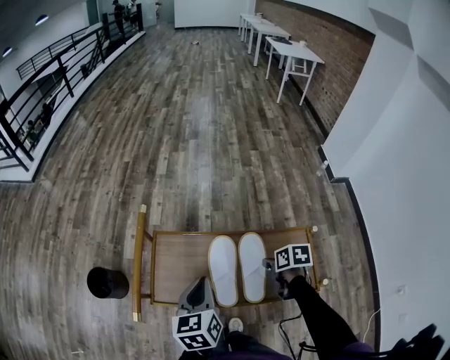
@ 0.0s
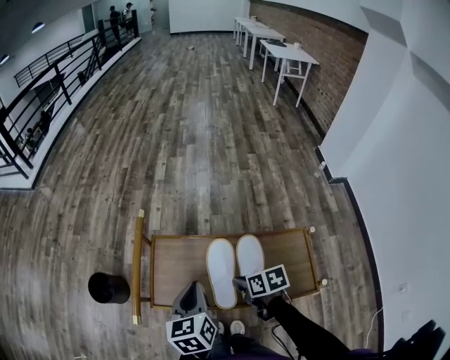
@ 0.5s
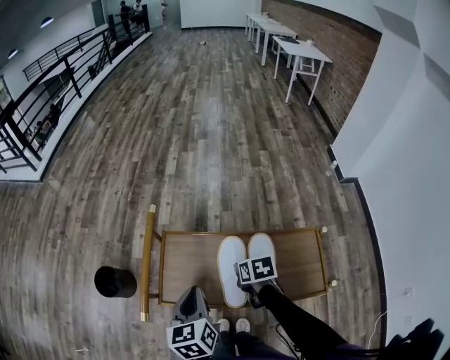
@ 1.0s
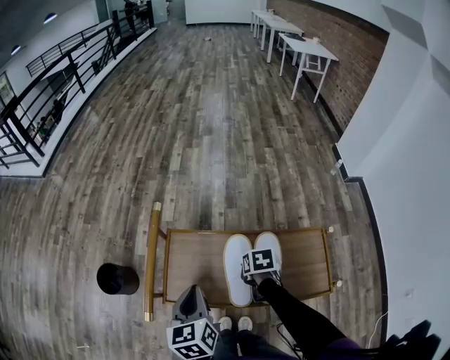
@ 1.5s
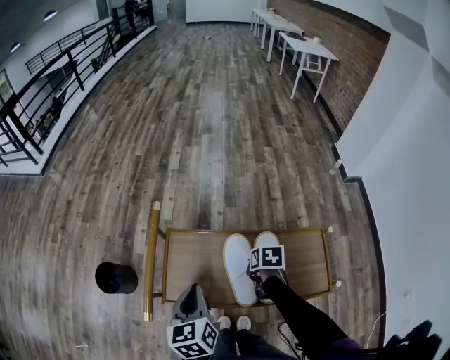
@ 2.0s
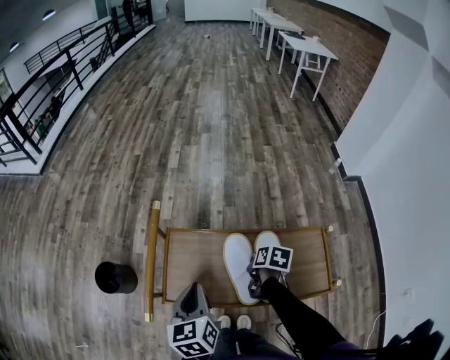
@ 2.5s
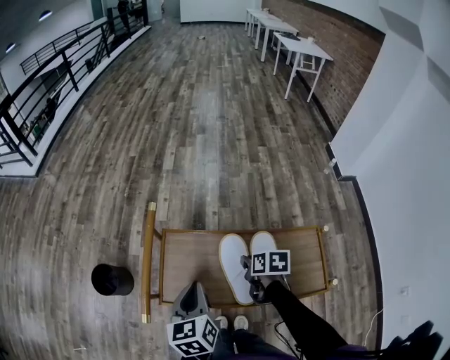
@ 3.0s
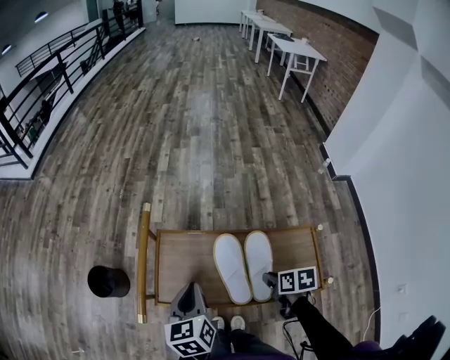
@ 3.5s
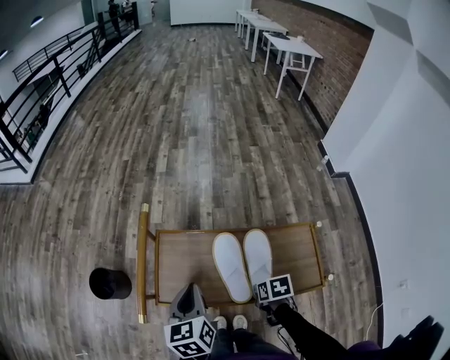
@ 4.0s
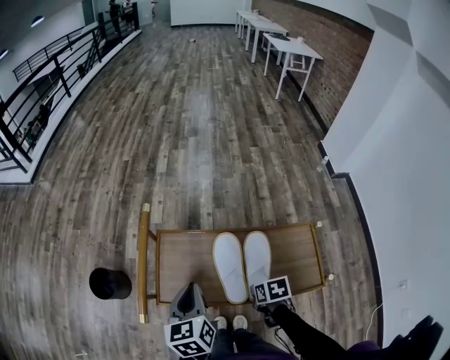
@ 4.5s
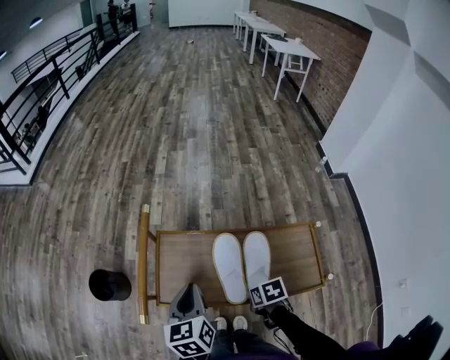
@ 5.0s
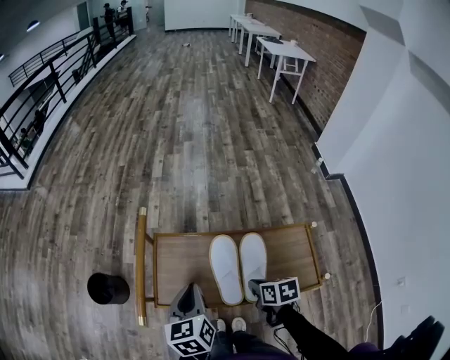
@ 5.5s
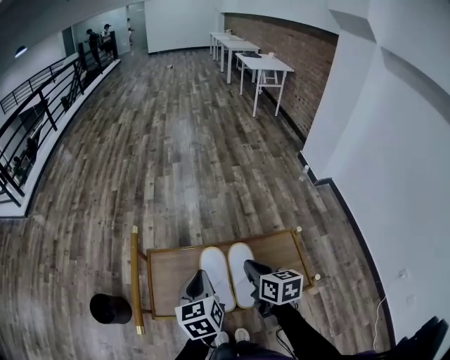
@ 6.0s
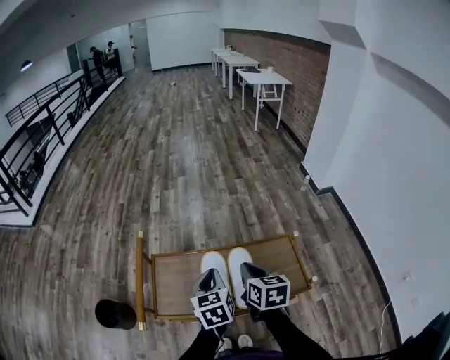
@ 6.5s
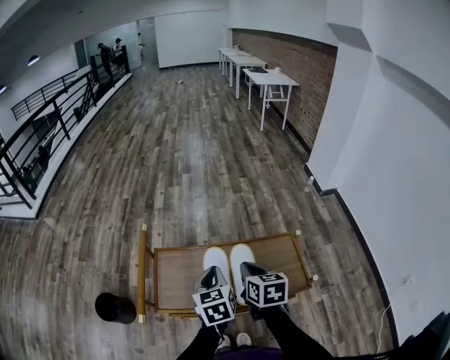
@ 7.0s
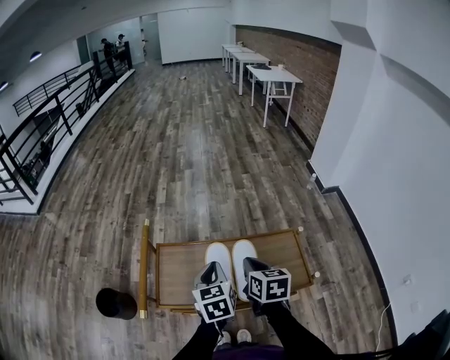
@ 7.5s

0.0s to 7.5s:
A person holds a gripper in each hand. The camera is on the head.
0.0s to 2.0s: The left gripper is displaced to the left by about 5 cm. The right gripper heads to the left and forward, covering roughly 10 cm.
2.0s to 4.0s: The right gripper heads backward, covering approximately 15 cm.
4.0s to 5.5s: The right gripper heads upward, covering roughly 5 cm.
5.5s to 7.5s: The left gripper goes about 10 cm to the right. The right gripper travels upward by about 15 cm, and changes its angle by about 30 degrees.

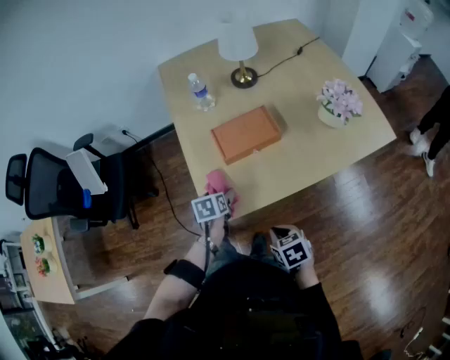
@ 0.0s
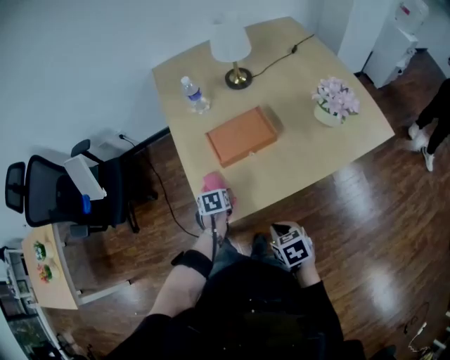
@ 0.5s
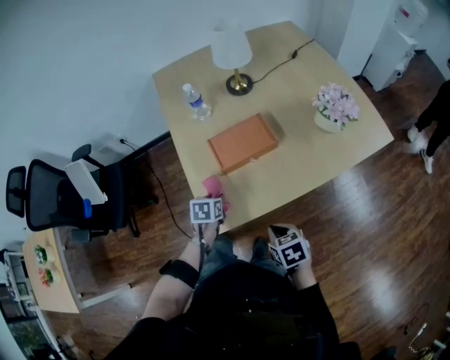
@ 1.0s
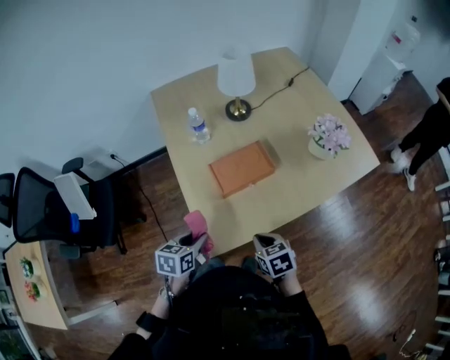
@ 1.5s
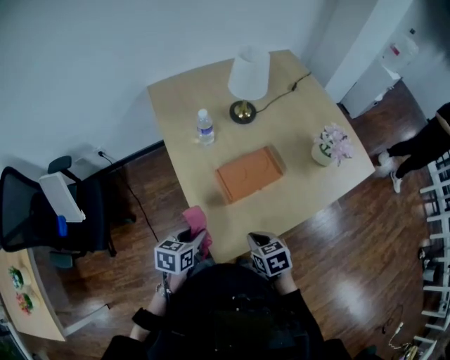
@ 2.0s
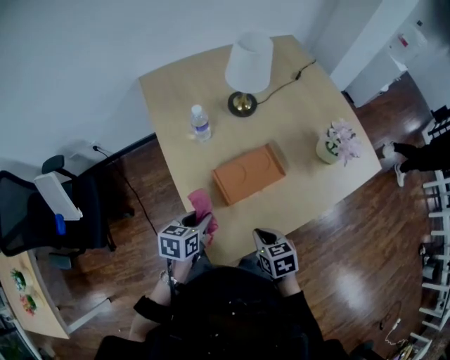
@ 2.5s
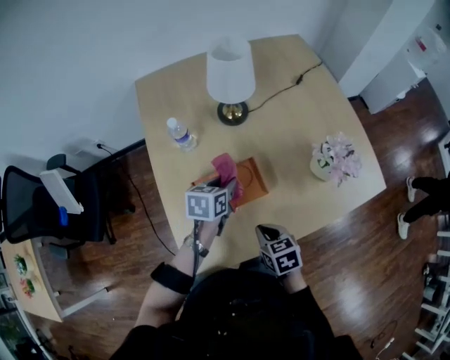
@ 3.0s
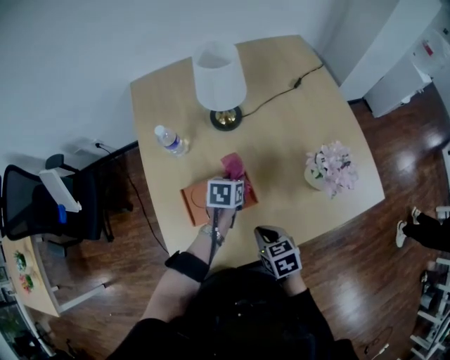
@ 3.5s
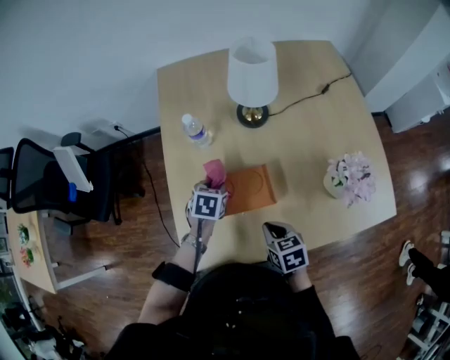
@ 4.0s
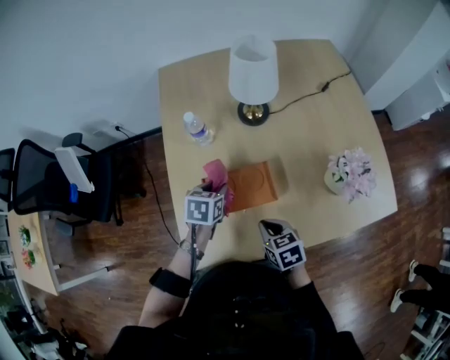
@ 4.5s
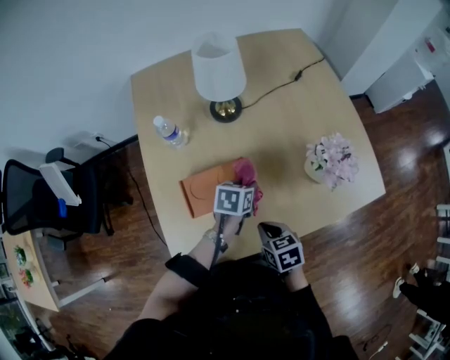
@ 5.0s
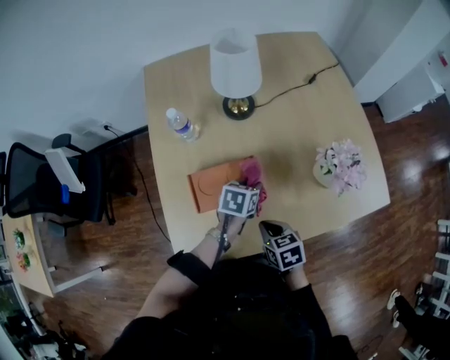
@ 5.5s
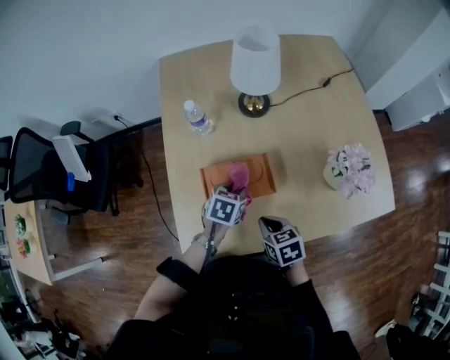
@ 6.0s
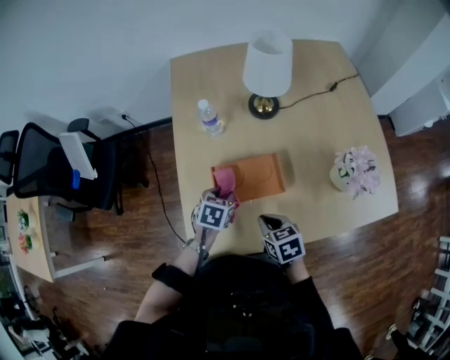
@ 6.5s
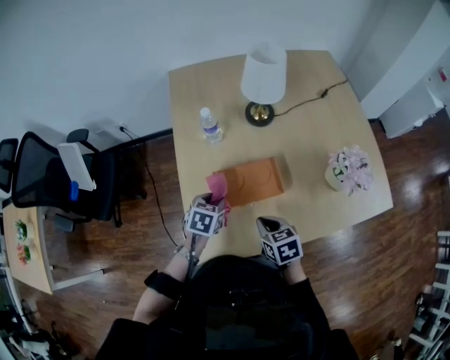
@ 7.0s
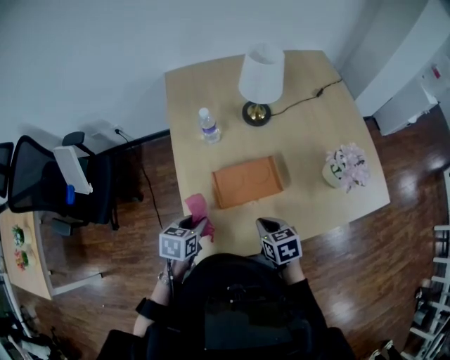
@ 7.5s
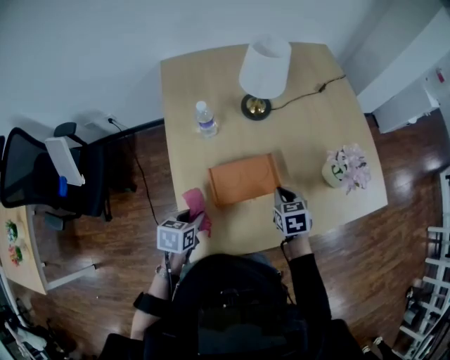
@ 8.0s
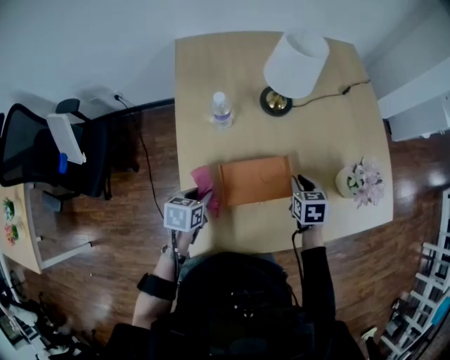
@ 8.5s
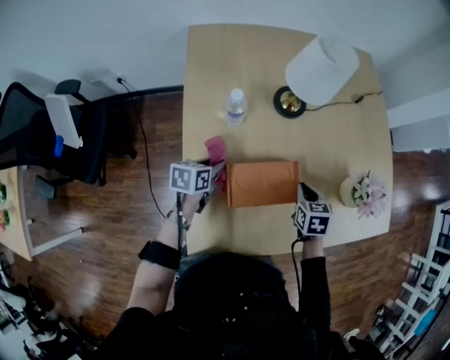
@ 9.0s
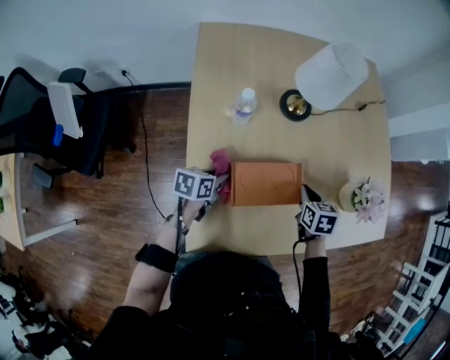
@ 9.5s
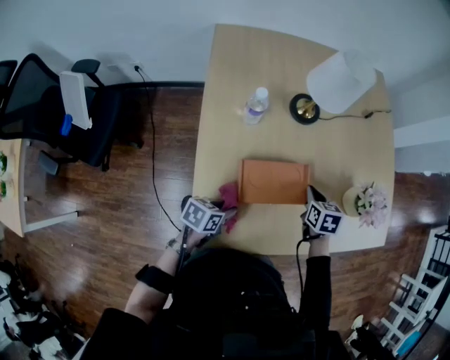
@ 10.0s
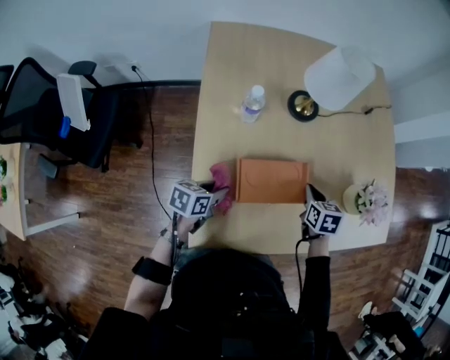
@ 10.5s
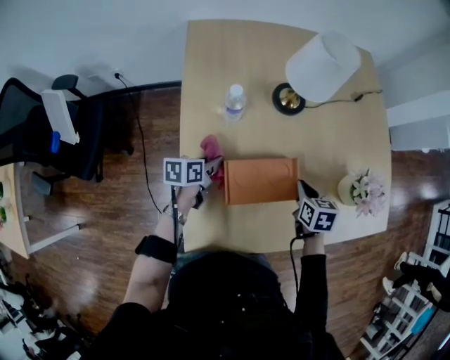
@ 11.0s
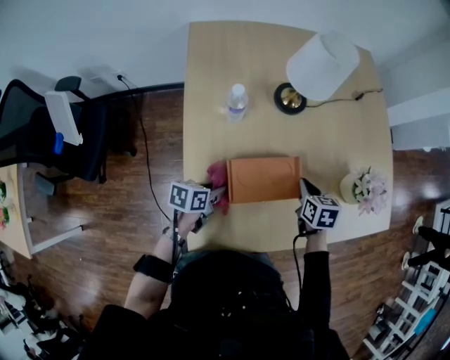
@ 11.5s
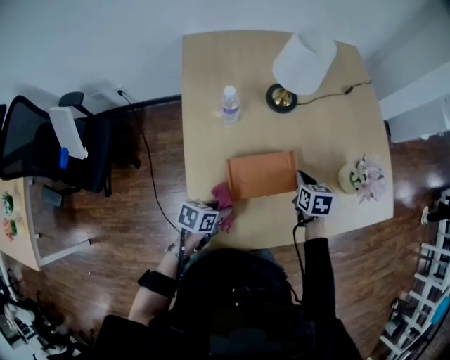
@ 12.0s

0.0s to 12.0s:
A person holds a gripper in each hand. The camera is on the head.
0.0s to 2.0s: The right gripper shifts by approximately 15 cm. Meanwhile the left gripper travels upward by approximately 10 cm, swivels some 30 degrees, and closes its fingers.
2.0s to 4.0s: The right gripper ends up roughly 20 cm from where it was. Meanwhile the left gripper shifts by approximately 25 cm, and changes its angle by some 30 degrees.
4.0s to 6.0s: The left gripper is displaced to the right and backward by about 10 cm.
6.0s to 8.0s: The right gripper is displaced forward by approximately 10 cm, and turns by approximately 20 degrees. The left gripper travels to the left and backward by approximately 20 cm.
8.0s to 10.0s: The right gripper shifts about 5 cm forward, while the left gripper shifts approximately 5 cm to the right, travels forward and back again, approximately 15 cm each way, and swivels about 20 degrees.
10.0s to 12.0s: The left gripper moves approximately 15 cm forward and comes back.

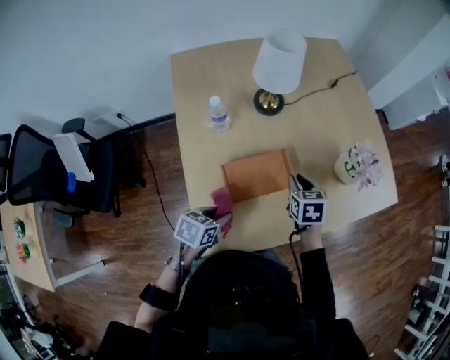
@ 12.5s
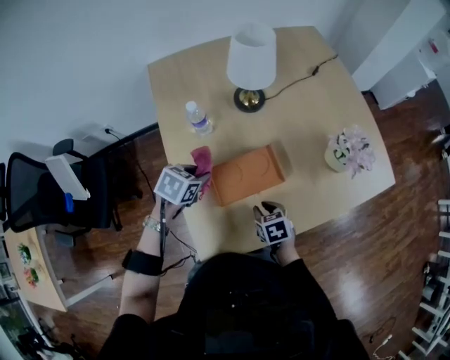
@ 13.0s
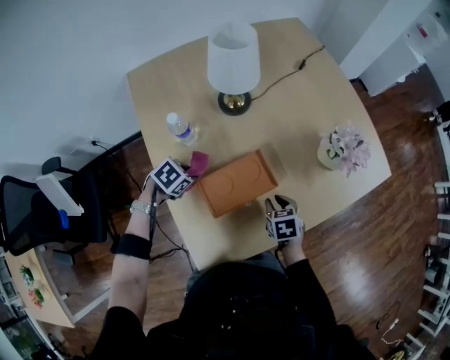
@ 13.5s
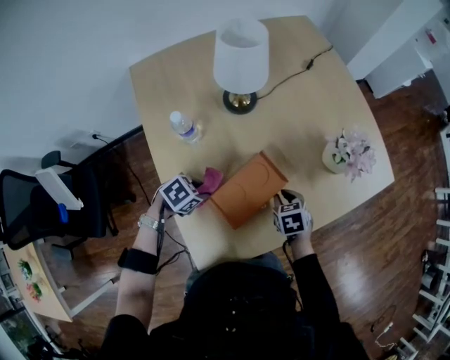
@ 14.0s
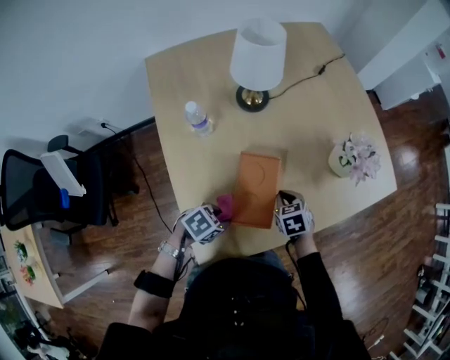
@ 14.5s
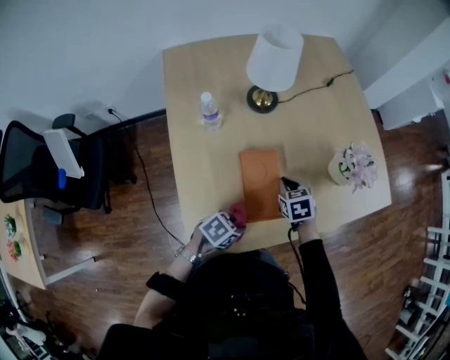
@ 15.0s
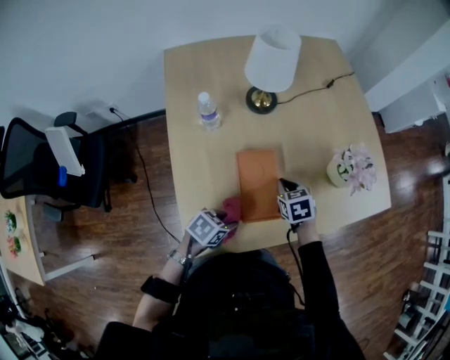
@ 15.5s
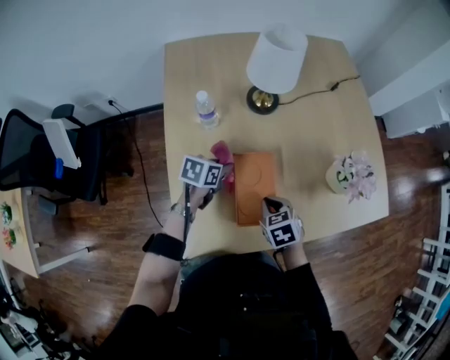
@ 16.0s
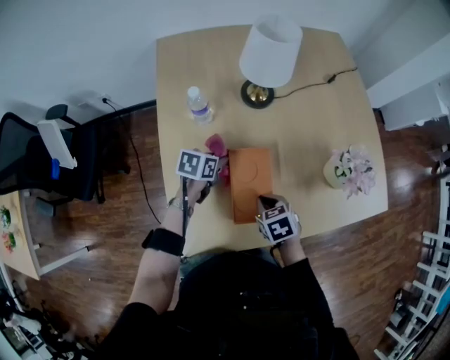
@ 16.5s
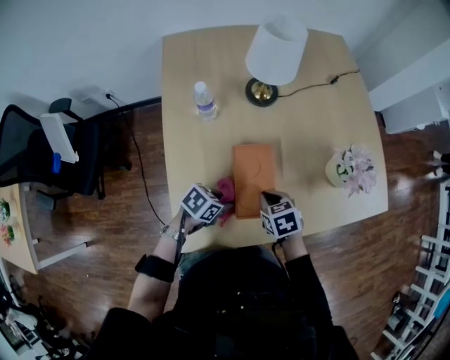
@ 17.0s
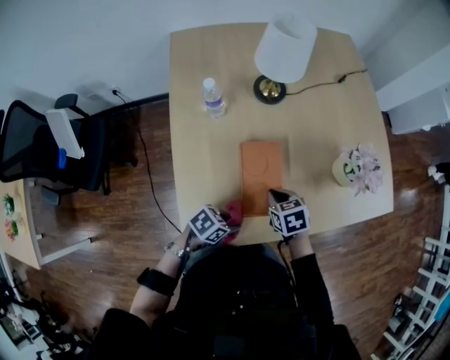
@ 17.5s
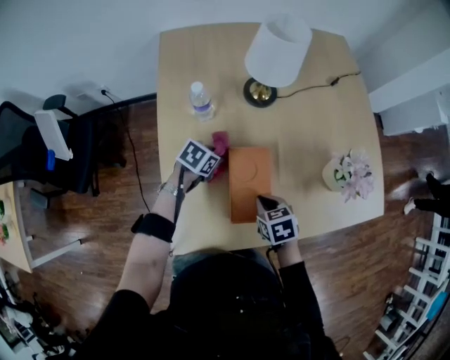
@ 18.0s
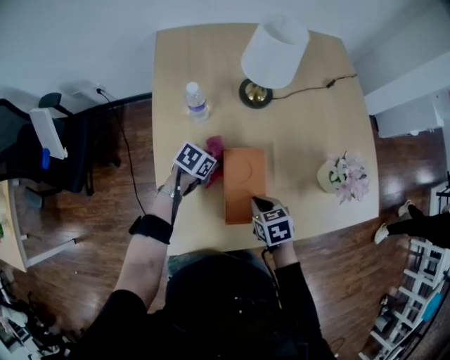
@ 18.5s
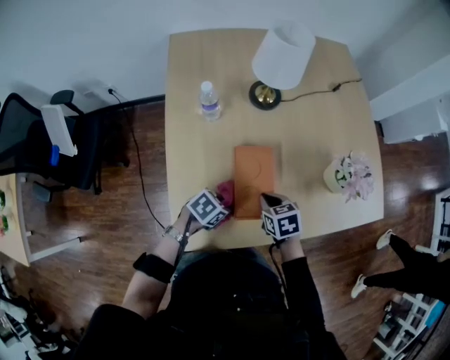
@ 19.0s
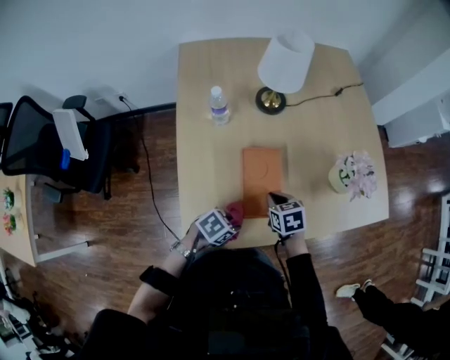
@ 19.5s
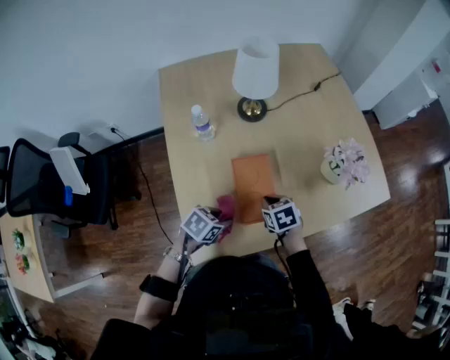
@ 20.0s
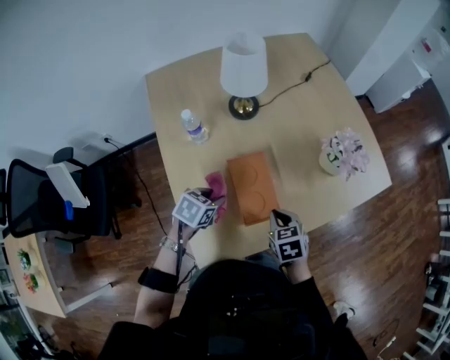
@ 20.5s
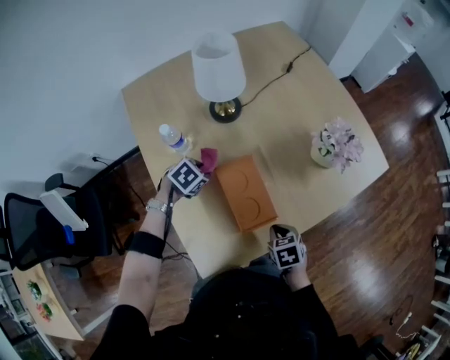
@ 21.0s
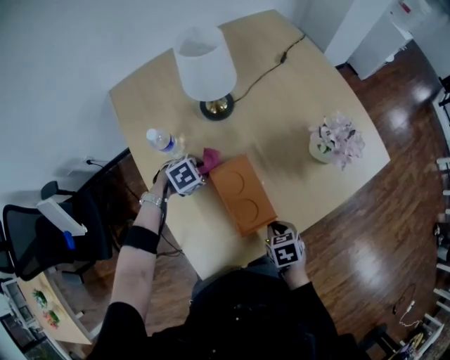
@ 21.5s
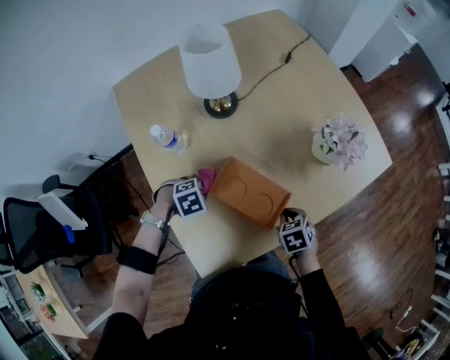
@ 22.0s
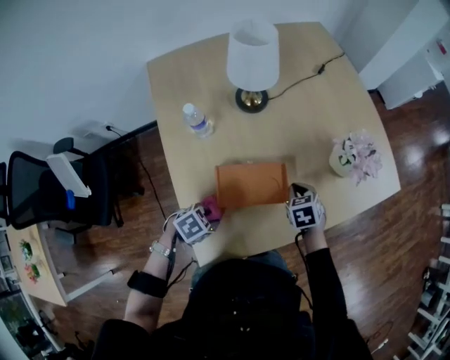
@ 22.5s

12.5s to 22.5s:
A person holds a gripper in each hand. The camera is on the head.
12.5s to 14.5s: The left gripper is displaced downward by about 5 cm, and changes its angle by some 40 degrees, while the right gripper shifts roughly 10 cm downward.
14.5s to 16.5s: The left gripper shifts by some 20 cm, and turns by approximately 50 degrees.
18.5s to 20.5s: The right gripper shifts by approximately 5 cm.
20.5s to 22.5s: The left gripper shifts by some 10 cm, and turns by about 30 degrees, while the right gripper shifts by some 10 cm.
